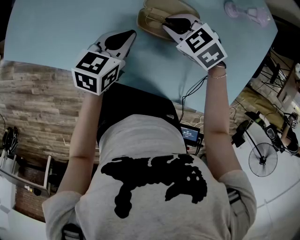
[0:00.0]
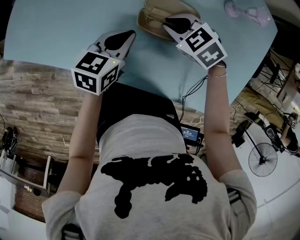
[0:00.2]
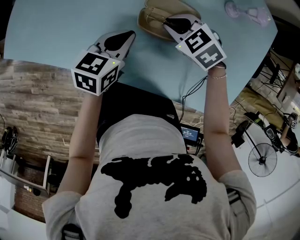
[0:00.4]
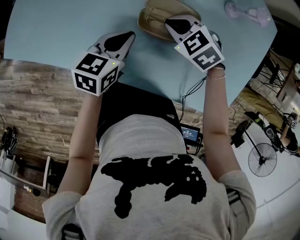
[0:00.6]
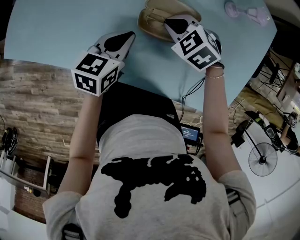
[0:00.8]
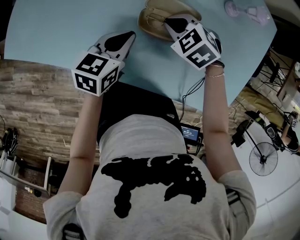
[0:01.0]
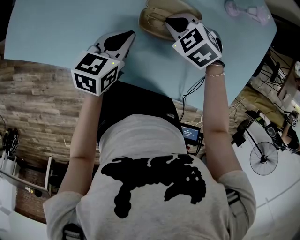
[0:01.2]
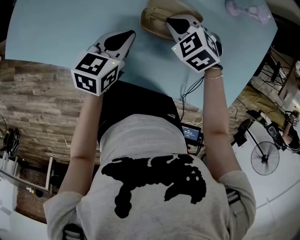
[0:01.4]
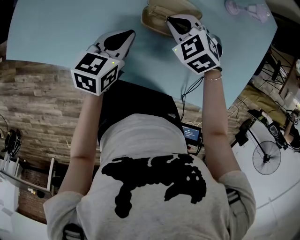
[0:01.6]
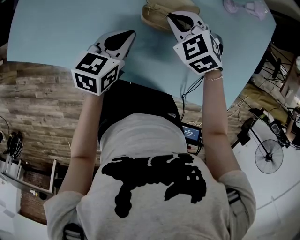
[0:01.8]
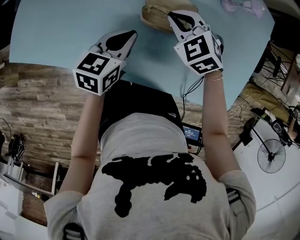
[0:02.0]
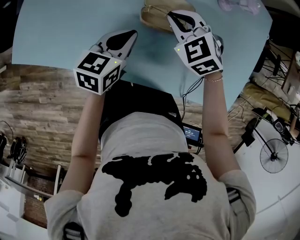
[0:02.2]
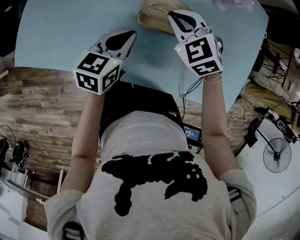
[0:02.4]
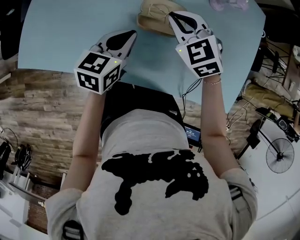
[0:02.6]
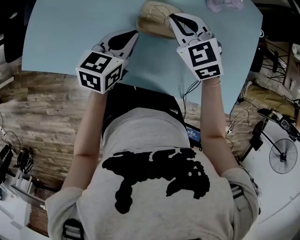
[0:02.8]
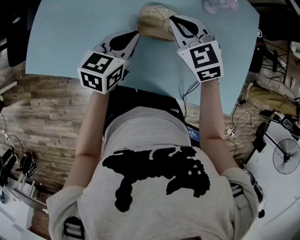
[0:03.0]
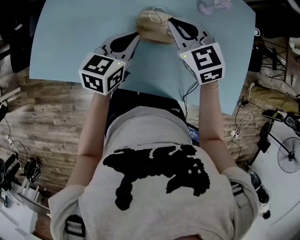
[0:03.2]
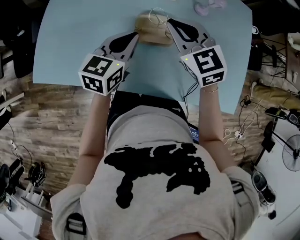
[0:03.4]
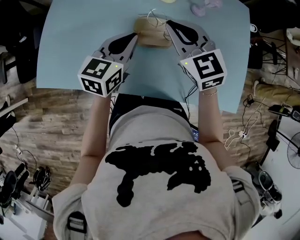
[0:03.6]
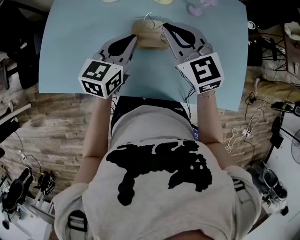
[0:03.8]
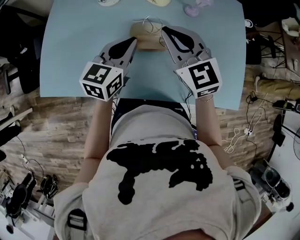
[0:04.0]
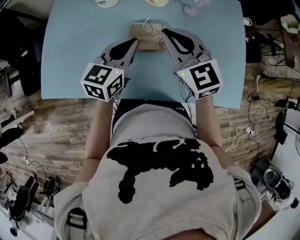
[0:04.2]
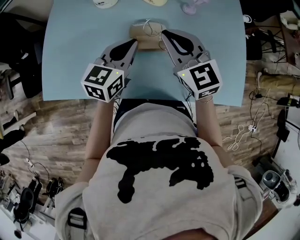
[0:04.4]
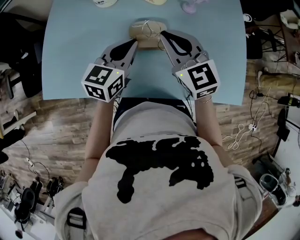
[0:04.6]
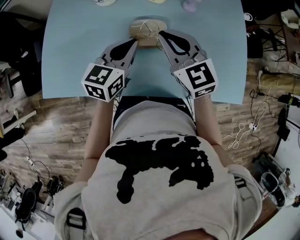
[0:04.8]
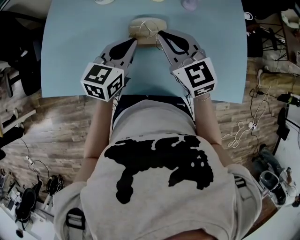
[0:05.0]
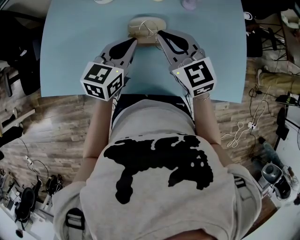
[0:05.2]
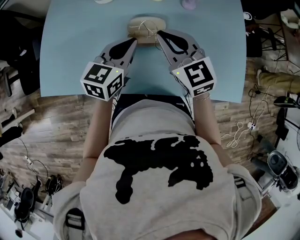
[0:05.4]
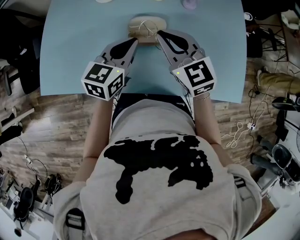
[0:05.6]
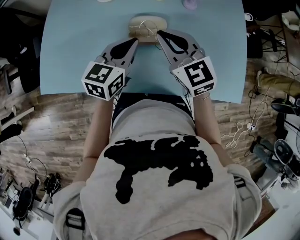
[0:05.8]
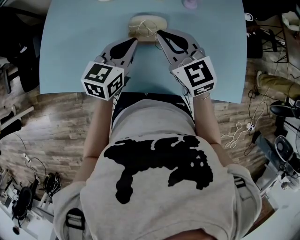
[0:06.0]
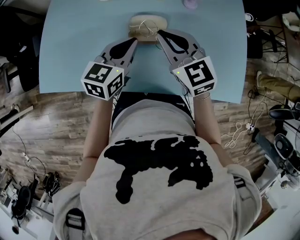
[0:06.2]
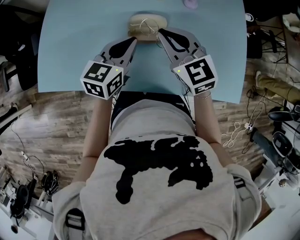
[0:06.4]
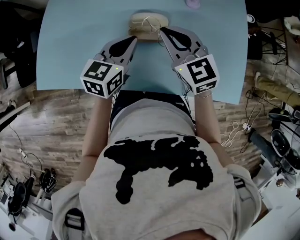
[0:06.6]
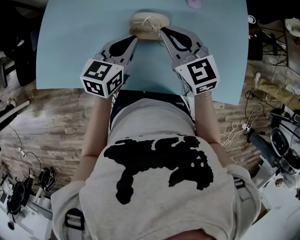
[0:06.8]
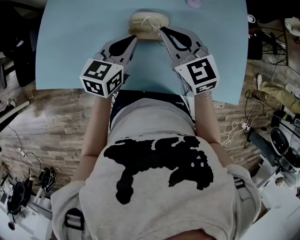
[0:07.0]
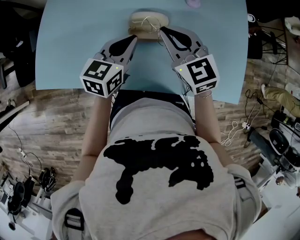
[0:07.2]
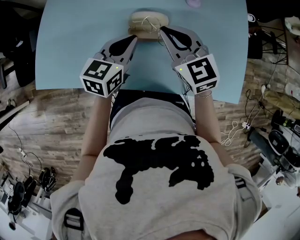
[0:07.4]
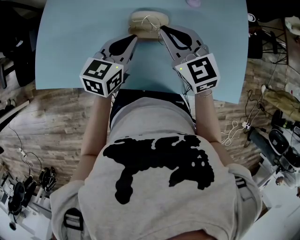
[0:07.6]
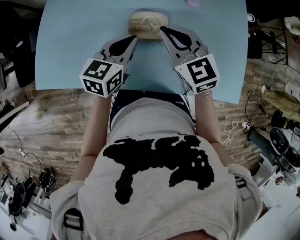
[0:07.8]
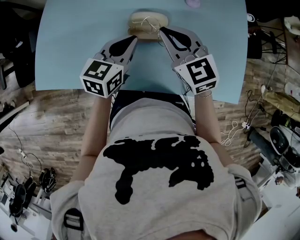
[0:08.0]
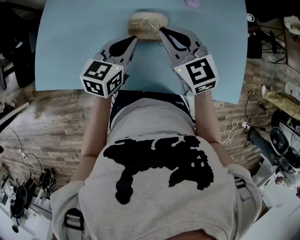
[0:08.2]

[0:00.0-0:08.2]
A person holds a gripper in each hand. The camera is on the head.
0:00.0 to 0:01.6: The grippers move only a little.
0:01.6 to 0:03.2: The right gripper heads upward, covering roughly 15 cm, and swivels approximately 40 degrees, while the left gripper travels upward by roughly 10 cm.
0:03.2 to 0:05.0: The right gripper ends up approximately 5 cm from where it was.
0:05.0 to 0:06.6: The grippers move only a little.
0:06.6 to 0:08.2: Both grippers stay about where they are.

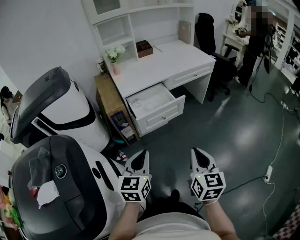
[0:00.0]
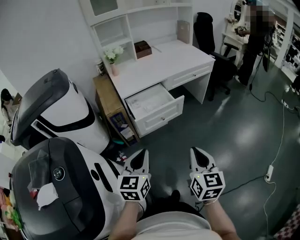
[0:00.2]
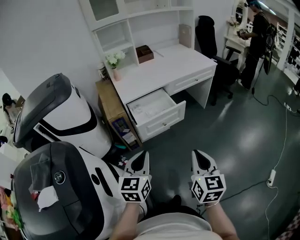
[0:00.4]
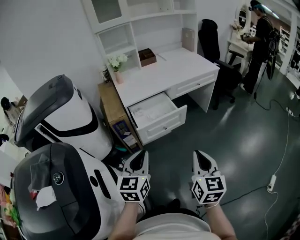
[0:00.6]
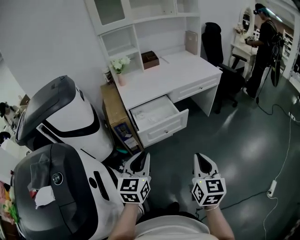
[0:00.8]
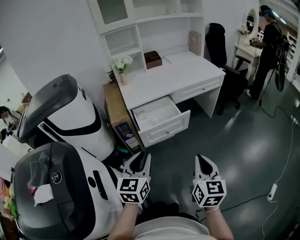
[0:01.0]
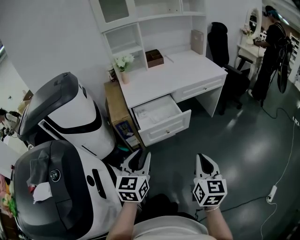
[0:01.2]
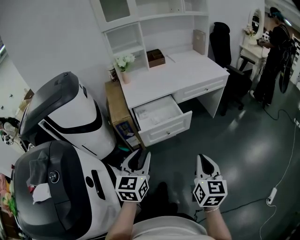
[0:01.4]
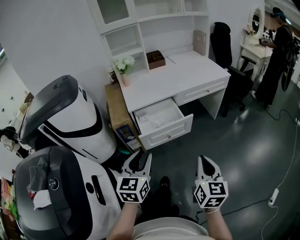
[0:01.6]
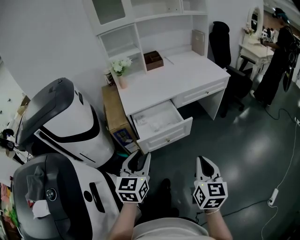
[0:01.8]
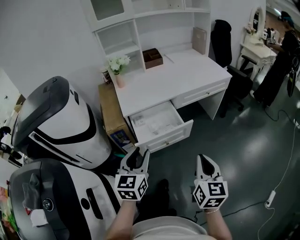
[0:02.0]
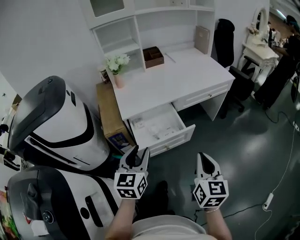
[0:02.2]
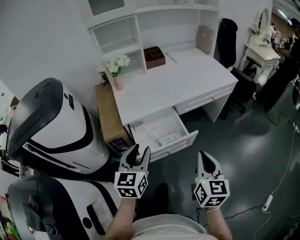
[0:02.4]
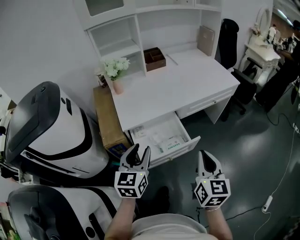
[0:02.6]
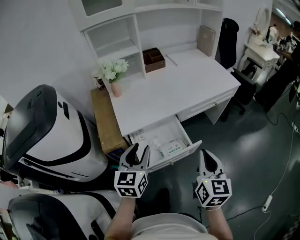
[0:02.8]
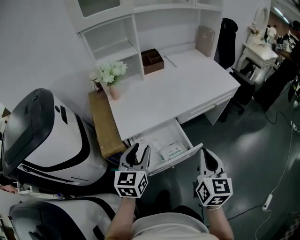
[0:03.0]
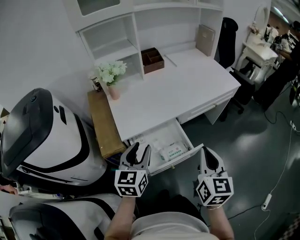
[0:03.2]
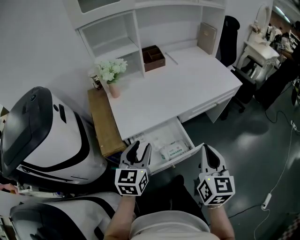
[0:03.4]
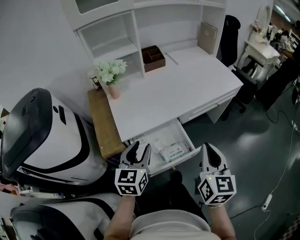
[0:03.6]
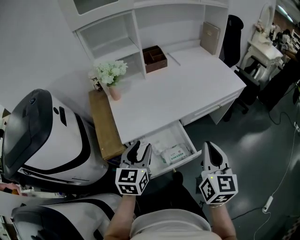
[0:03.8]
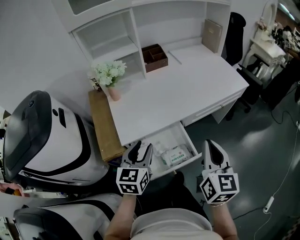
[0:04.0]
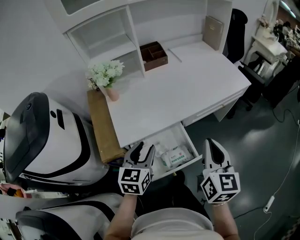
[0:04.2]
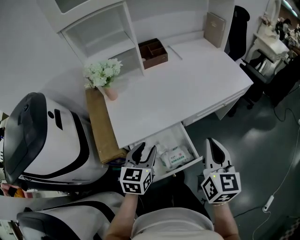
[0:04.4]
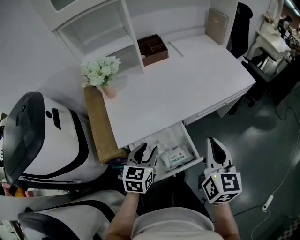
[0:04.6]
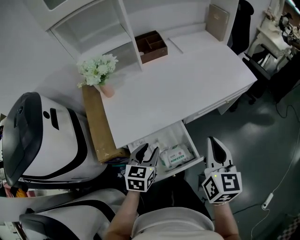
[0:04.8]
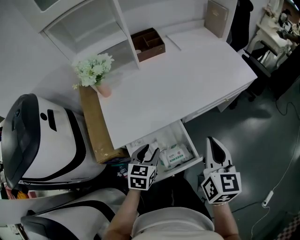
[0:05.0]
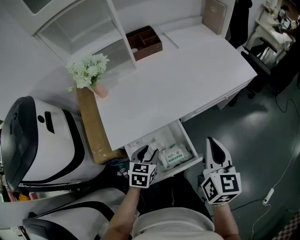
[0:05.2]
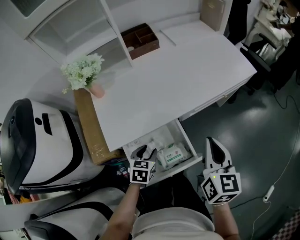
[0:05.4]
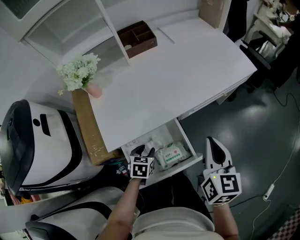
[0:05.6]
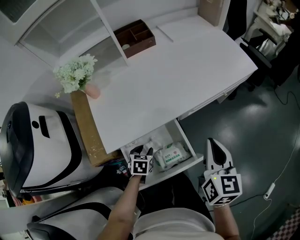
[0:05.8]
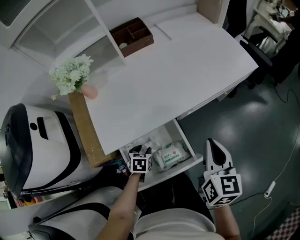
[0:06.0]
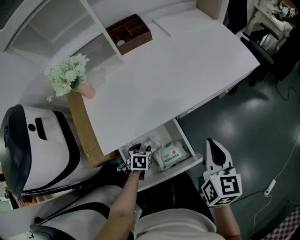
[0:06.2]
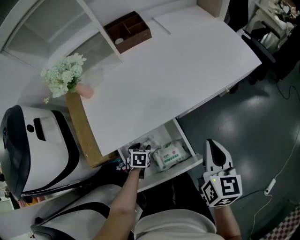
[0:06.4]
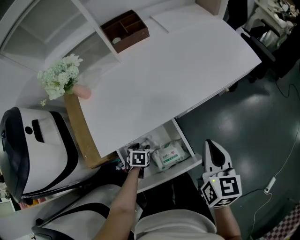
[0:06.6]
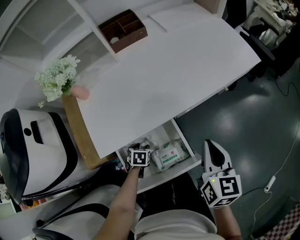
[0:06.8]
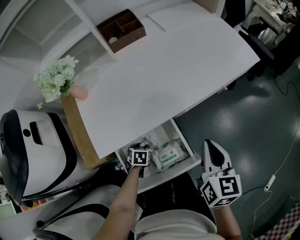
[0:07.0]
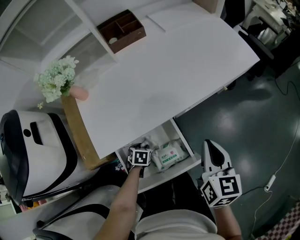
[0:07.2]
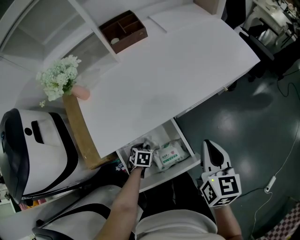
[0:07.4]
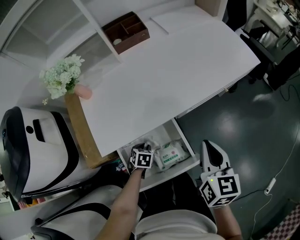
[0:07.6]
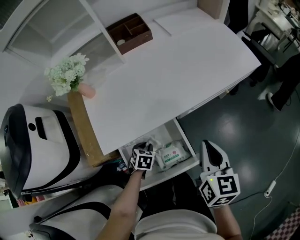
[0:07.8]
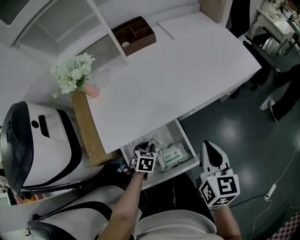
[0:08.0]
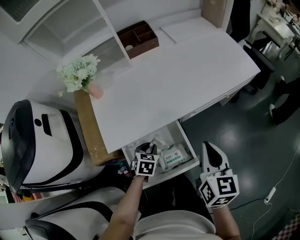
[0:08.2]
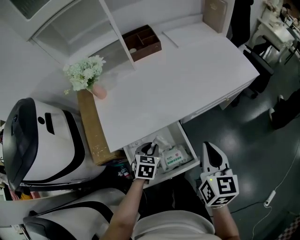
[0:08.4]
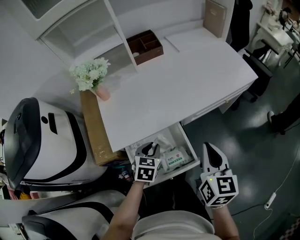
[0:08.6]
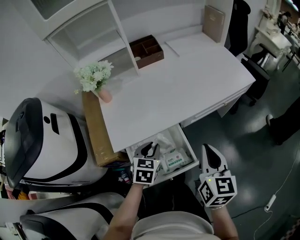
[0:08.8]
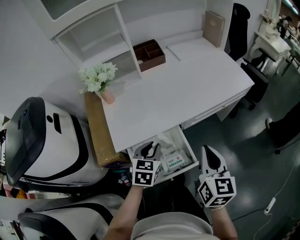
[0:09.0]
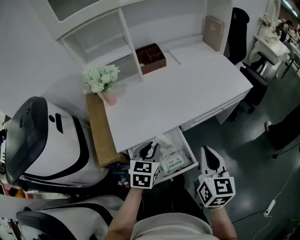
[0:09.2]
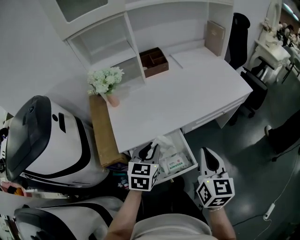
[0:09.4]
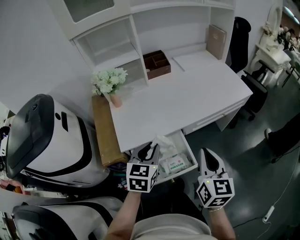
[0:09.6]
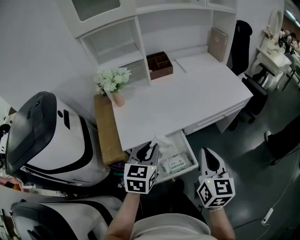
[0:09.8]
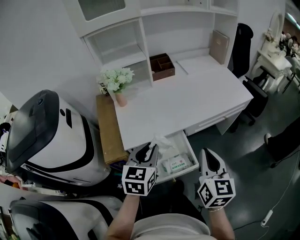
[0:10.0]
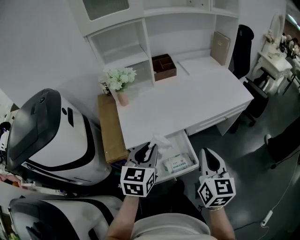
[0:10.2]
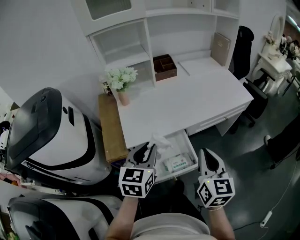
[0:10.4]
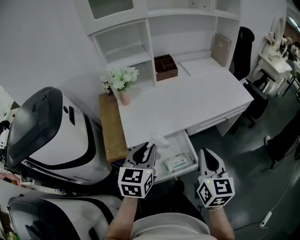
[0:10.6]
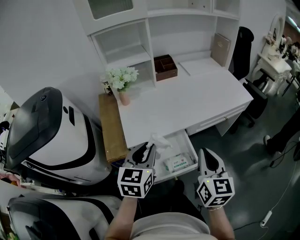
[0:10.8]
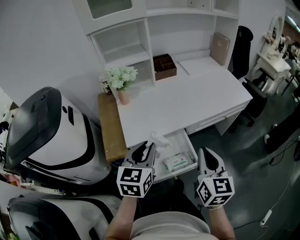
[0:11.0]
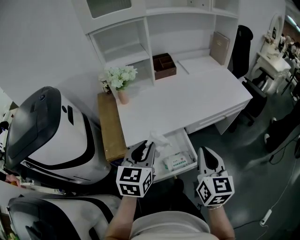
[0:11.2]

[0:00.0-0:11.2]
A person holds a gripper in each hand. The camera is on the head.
0:00.0 to 0:01.6: The right gripper travels forward and to the right by approximately 10 cm; the left gripper travels forward by some 10 cm, and opens.
0:01.6 to 0:03.2: Both grippers travel together forward, about 30 cm.
0:03.2 to 0:04.8: The right gripper moves forward, some 15 cm. Meanwhile the left gripper is displaced downward and forward by about 15 cm.
0:04.8 to 0:06.4: The right gripper moves downward, some 5 cm, while the left gripper heads downward, covering roughly 25 cm, and tilts its fingers some 40 degrees downward.
0:06.4 to 0:08.0: The left gripper shifts some 5 cm upward, and closes.
0:08.0 to 0:09.6: The right gripper moves upward and backward, approximately 10 cm, while the left gripper is displaced upward by about 25 cm, and tilts its fingers roughly 30 degrees upward.
0:09.6 to 0:11.2: The left gripper travels upward by about 5 cm.

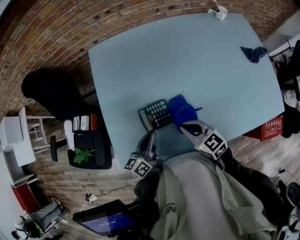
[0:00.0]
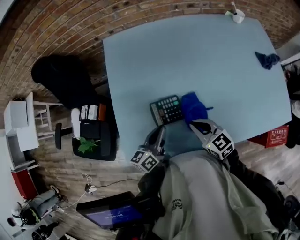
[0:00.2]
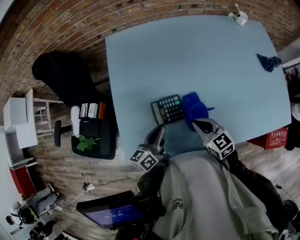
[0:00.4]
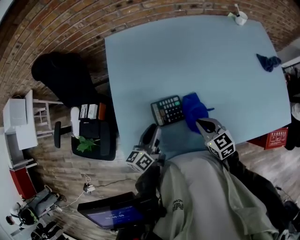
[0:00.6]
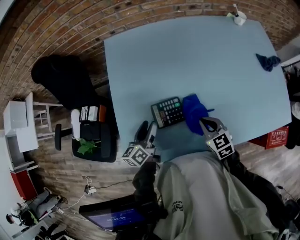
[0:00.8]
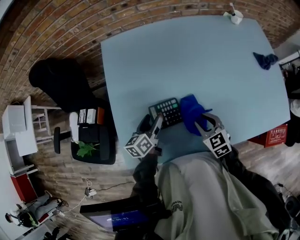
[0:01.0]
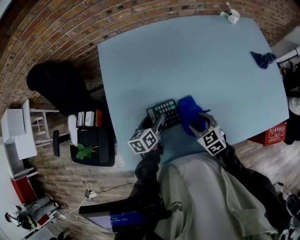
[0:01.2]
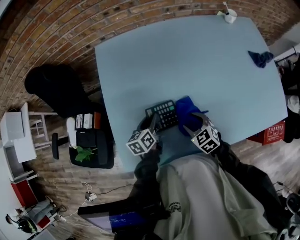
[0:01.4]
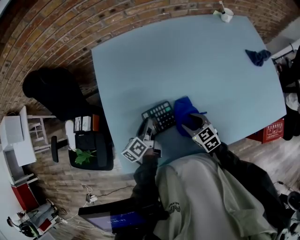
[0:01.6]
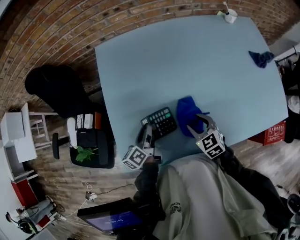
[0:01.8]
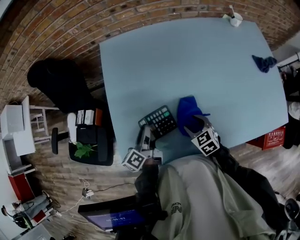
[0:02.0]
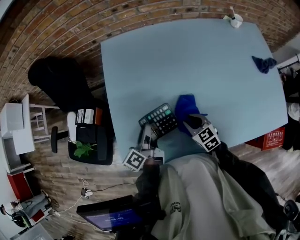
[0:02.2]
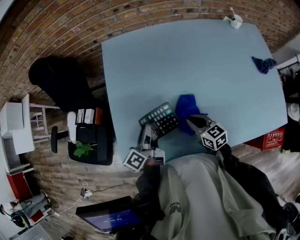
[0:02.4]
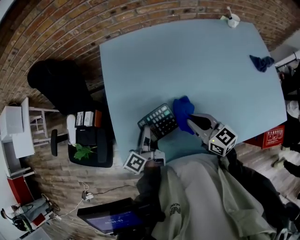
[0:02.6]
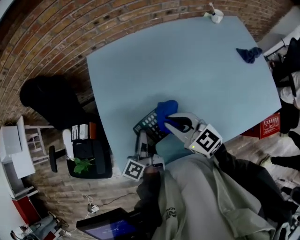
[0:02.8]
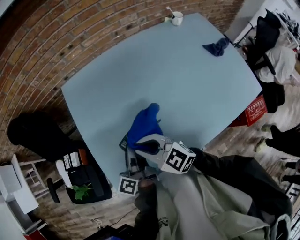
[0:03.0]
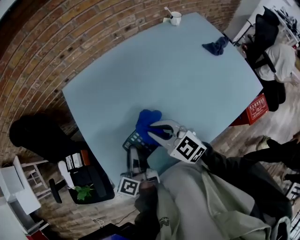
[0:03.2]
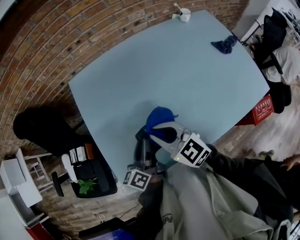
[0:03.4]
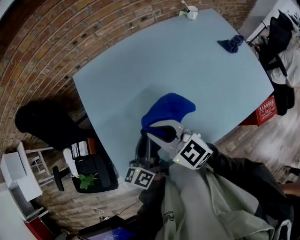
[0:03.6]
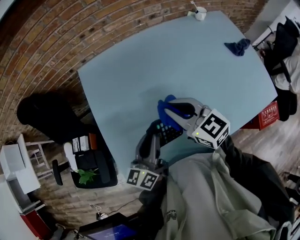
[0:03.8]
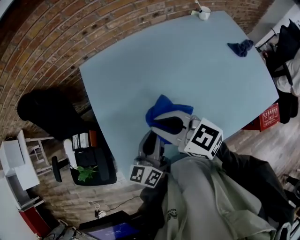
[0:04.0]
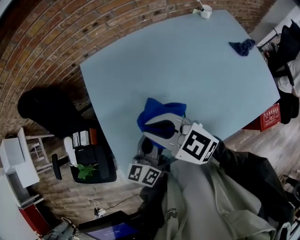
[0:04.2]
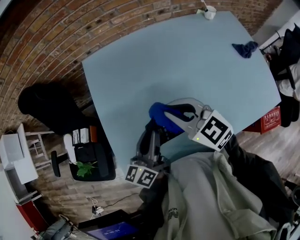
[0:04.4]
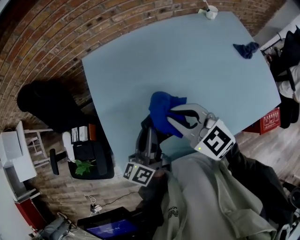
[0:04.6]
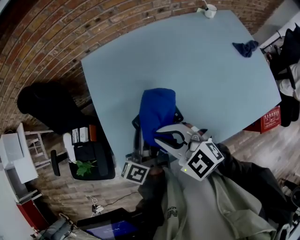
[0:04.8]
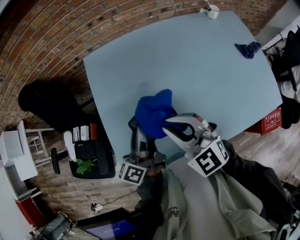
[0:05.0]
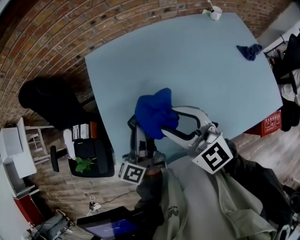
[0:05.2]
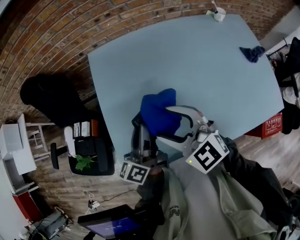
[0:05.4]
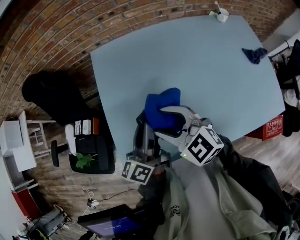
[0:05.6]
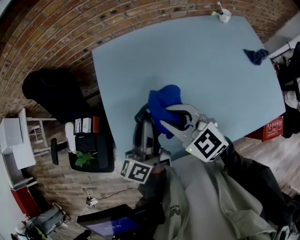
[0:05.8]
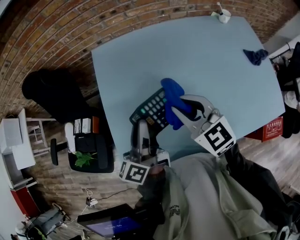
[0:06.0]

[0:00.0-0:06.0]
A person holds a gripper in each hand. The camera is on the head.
0:00.0 to 0:01.6: The left gripper travels forward and downward by about 10 cm, and opens and closes again, while the right gripper moves downward, about 10 cm, and opens its fingers.
0:01.6 to 0:03.0: The right gripper travels upward and to the left by about 20 cm, swivels roughly 30 degrees, and closes. The left gripper travels upward by some 10 cm, and turns by roughly 20 degrees.
0:03.0 to 0:04.4: The left gripper moves upward, about 5 cm, and rotates approximately 30 degrees, while the right gripper moves left and right over some 10 cm, changing direction 4 times.
0:04.4 to 0:06.0: The left gripper changes place by roughly 5 cm, and changes its angle by approximately 20 degrees; the right gripper swings left and right, about 5 cm each way, with 3 reversals, and opens and closes again.
